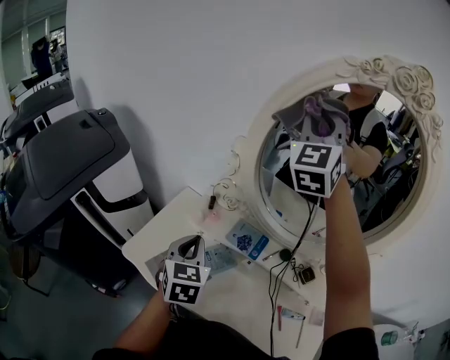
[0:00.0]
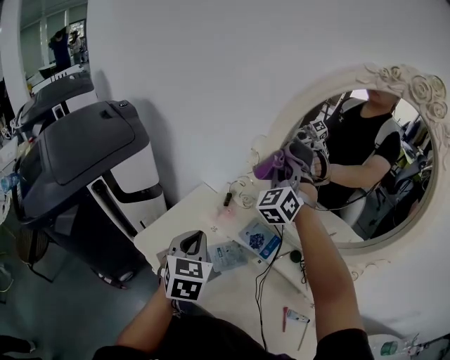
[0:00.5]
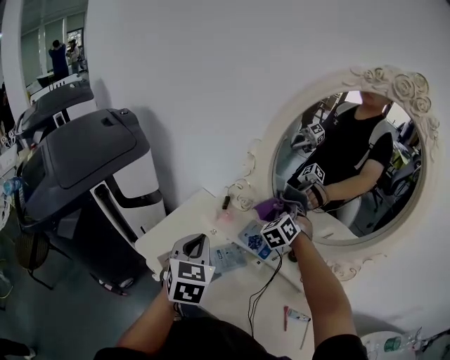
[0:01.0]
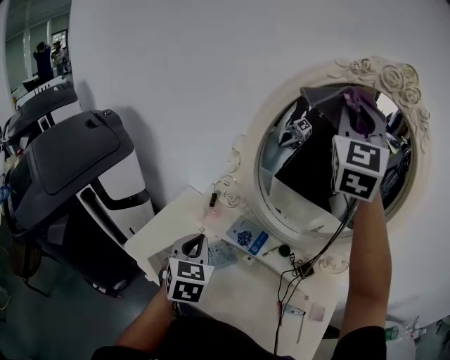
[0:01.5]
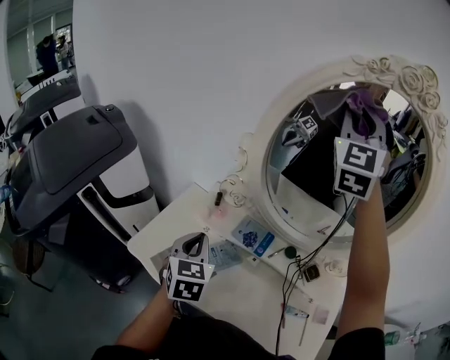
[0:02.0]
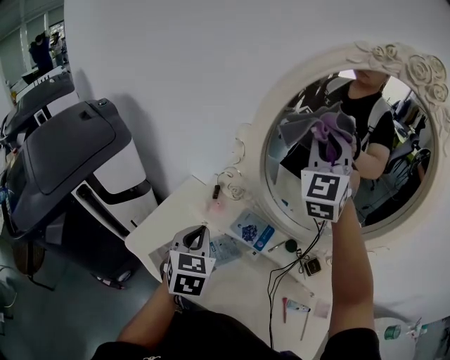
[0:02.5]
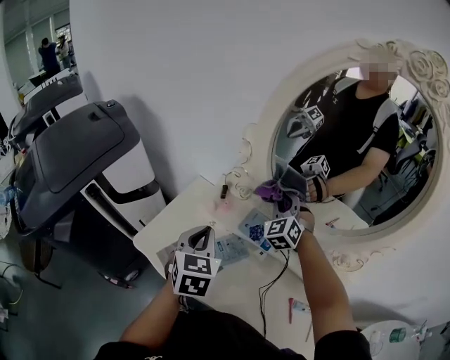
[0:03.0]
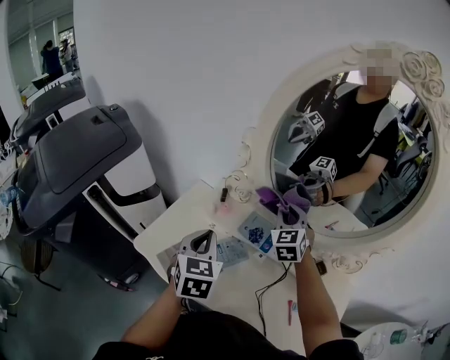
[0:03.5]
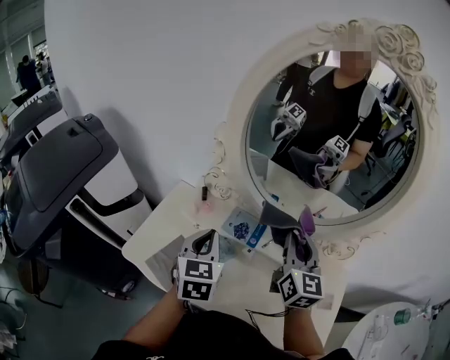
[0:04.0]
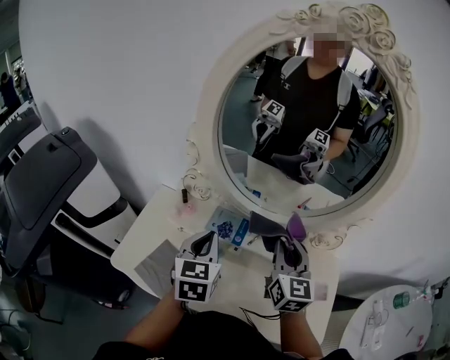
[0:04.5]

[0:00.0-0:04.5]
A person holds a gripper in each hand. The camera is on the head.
0:00.0 to 0:02.0: The right gripper goes some 5 cm to the right, and reaches some 35 cm downward, then returns.
0:02.0 to 0:04.5: The left gripper moves to the right, approximately 10 cm. The right gripper is displaced downward and backward by roughly 40 cm, and rolls clockwise, seen from behind, by approximately 40 degrees.

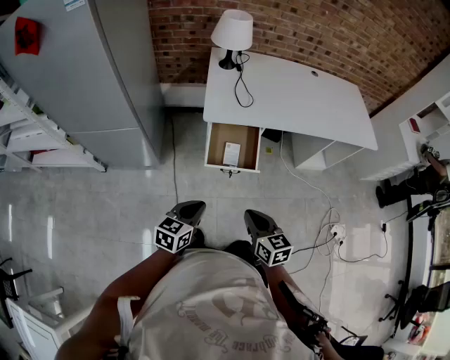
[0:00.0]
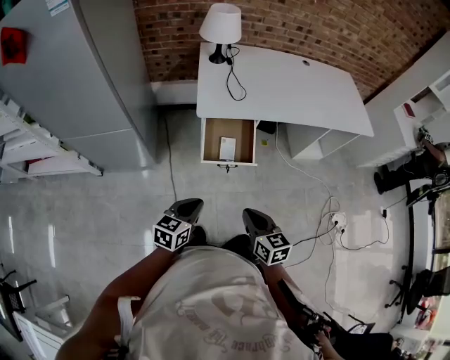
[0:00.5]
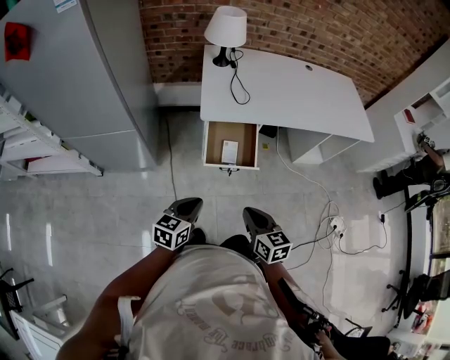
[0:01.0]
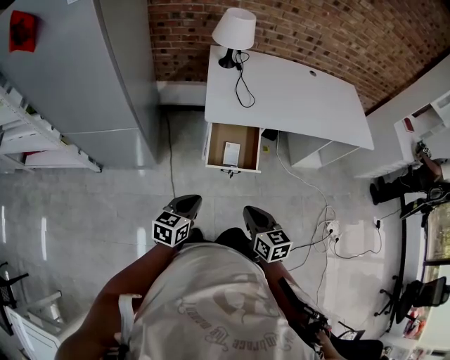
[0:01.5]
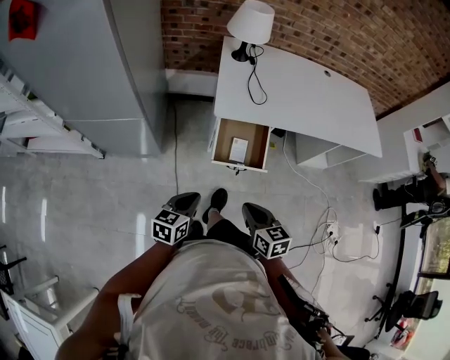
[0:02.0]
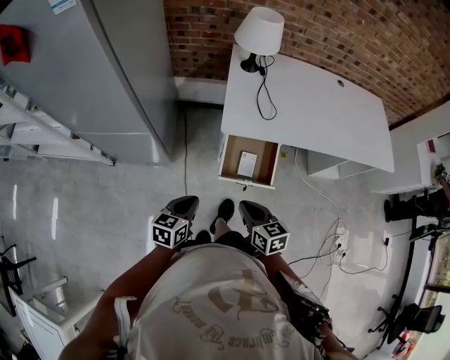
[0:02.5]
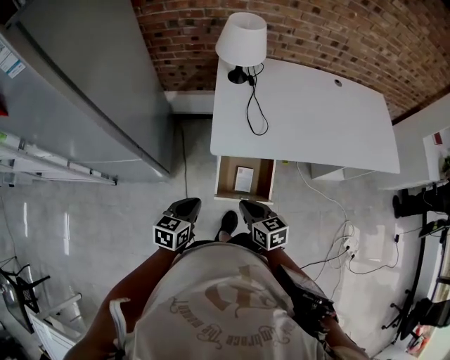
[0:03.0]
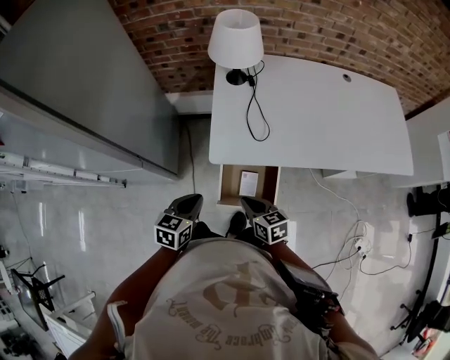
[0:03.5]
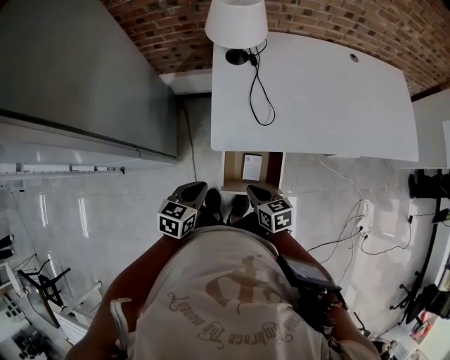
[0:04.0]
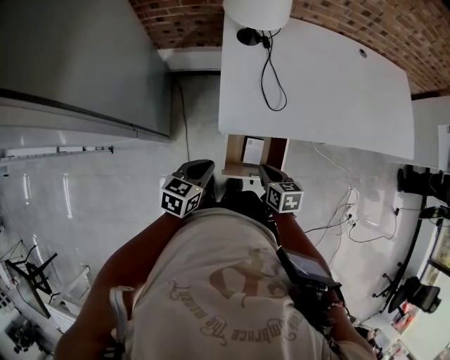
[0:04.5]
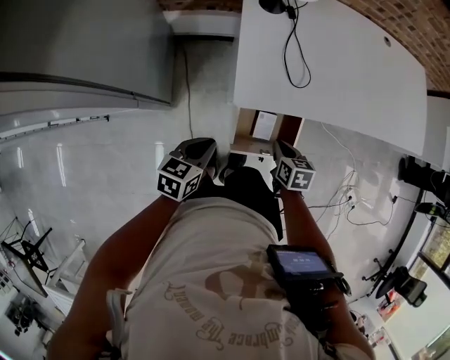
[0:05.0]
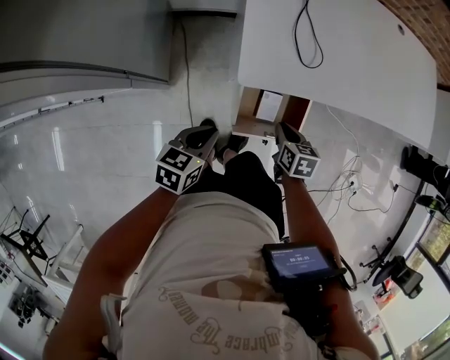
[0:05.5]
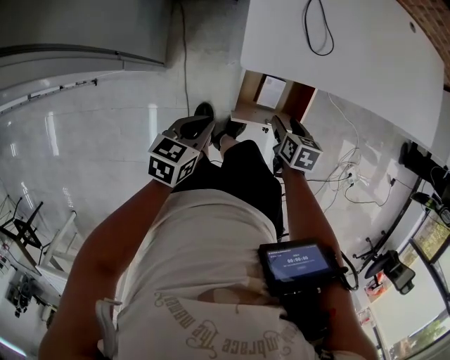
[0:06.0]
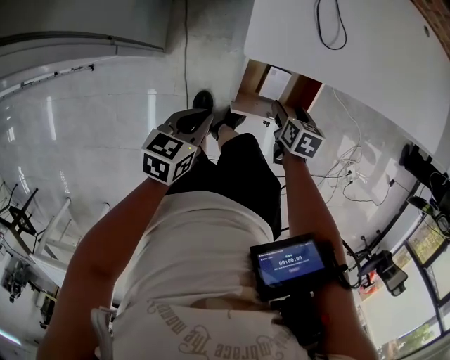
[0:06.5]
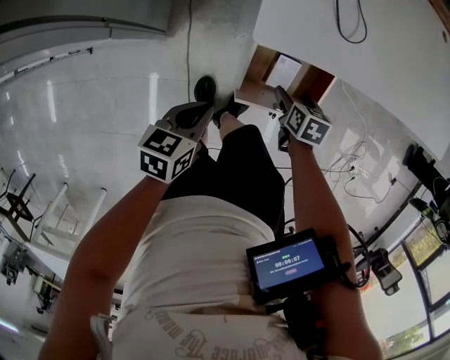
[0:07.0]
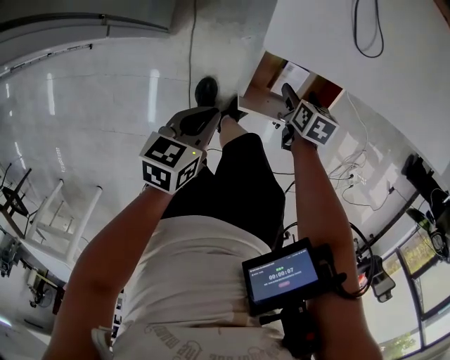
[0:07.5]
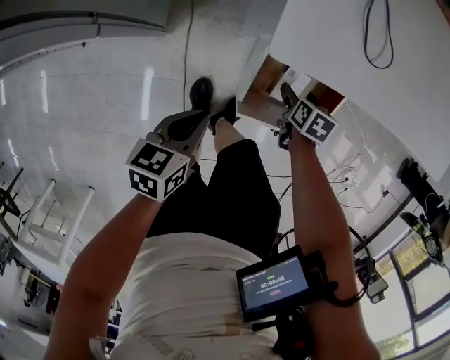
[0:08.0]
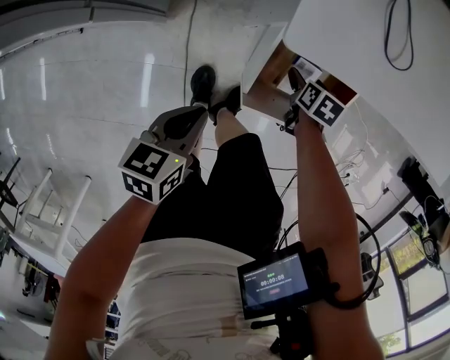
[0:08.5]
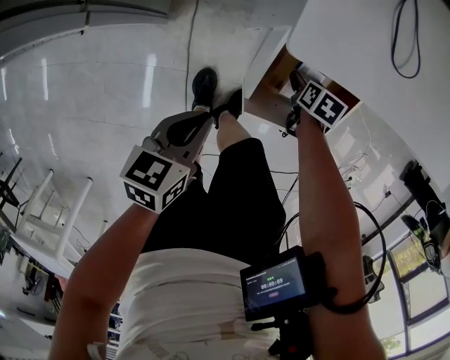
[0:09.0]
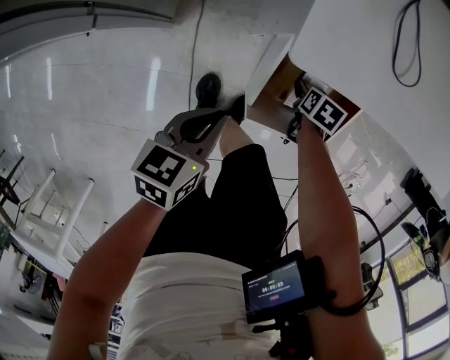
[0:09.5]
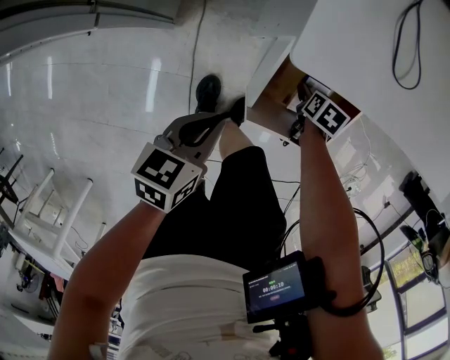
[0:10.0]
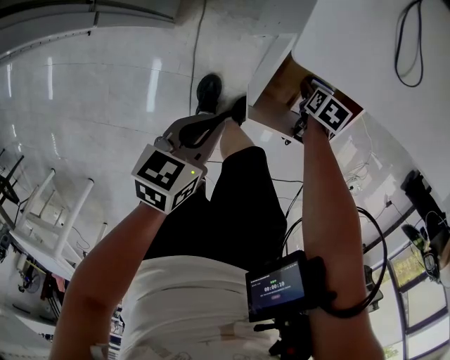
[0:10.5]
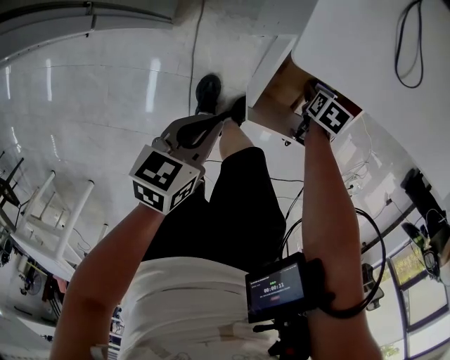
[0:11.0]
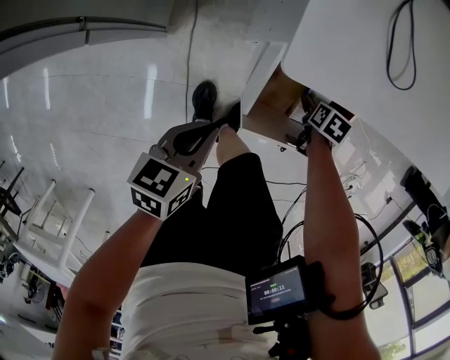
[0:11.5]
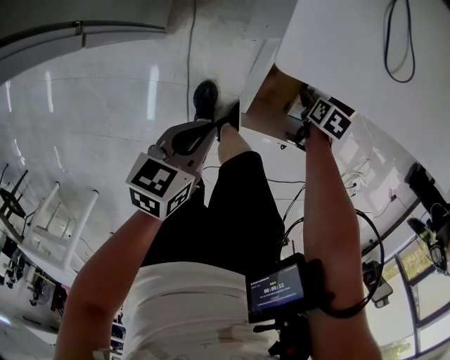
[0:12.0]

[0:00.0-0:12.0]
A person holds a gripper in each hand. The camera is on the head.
0:00.0 to 0:02.0: The left gripper heads to the left, covering about 5 cm; the right gripper goes approximately 5 cm forward and to the left.
0:02.0 to 0:04.0: Both grippers travel together forward, about 25 cm.
0:04.0 to 0:06.0: The right gripper is displaced downward by roughly 15 cm, rotates some 30 degrees, and opens up; the left gripper travels downward and to the left by approximately 10 cm.
0:06.0 to 0:08.0: The left gripper shifts roughly 10 cm downward; the right gripper goes roughly 15 cm downward and forward.
0:08.0 to 0:10.0: The right gripper goes roughly 5 cm downward.
0:10.0 to 0:12.0: The grippers make only small movements.

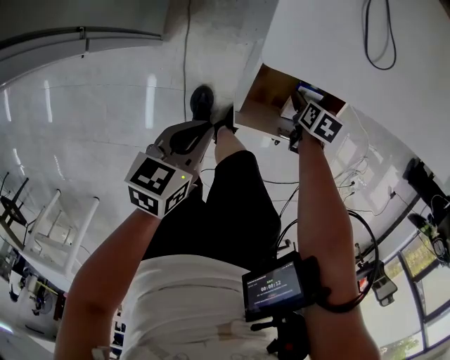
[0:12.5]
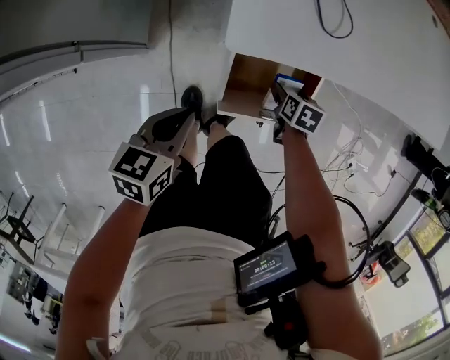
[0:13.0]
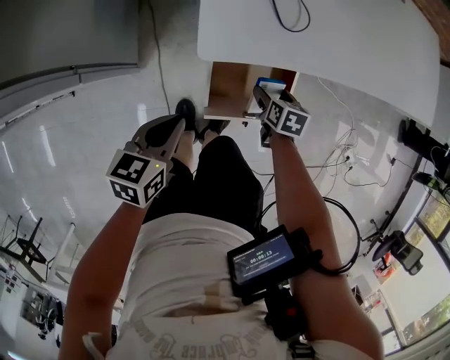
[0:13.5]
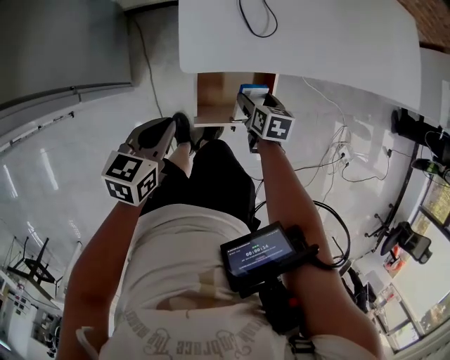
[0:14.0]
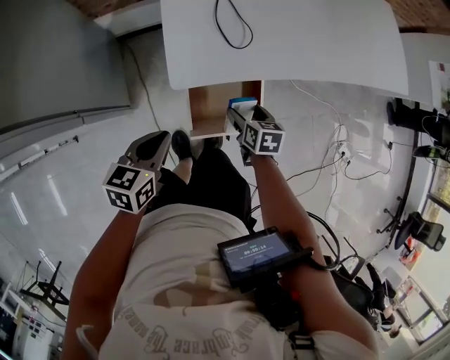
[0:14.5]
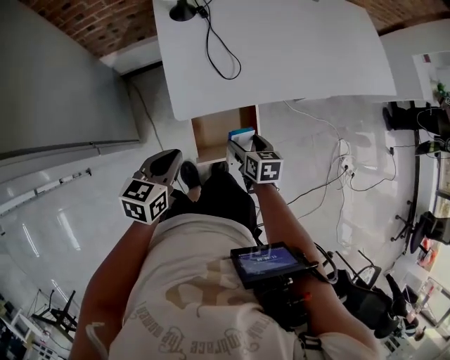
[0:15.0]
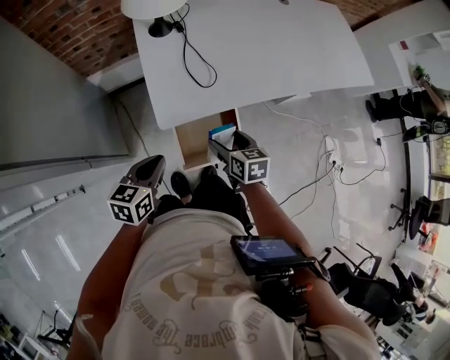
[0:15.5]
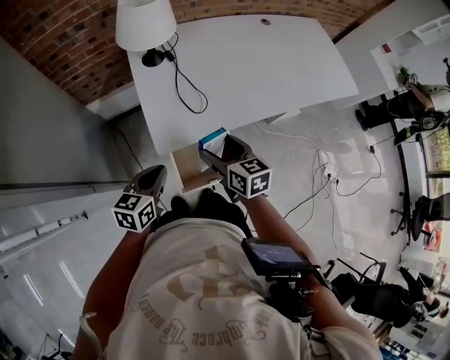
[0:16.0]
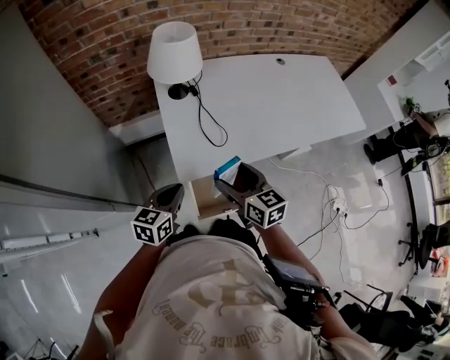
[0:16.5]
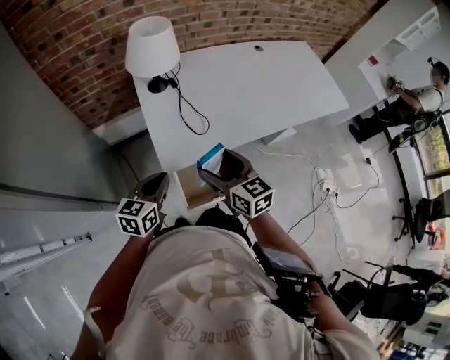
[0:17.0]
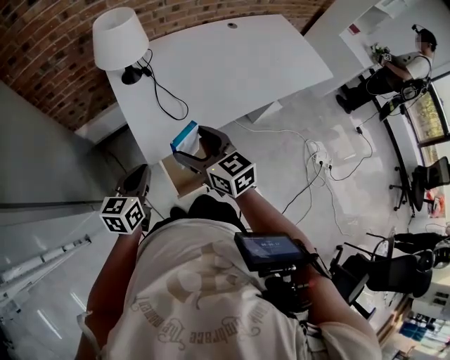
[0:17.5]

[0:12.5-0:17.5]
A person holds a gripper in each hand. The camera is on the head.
0:12.5 to 0:15.0: The two grippers go some 20 cm upward. The left gripper changes its angle by approximately 20 degrees. Meanwhile the right gripper turns by roughly 20 degrees.
0:15.0 to 0:17.5: The right gripper travels upward by approximately 25 cm, and tilts its fingers roughly 30 degrees upward. The left gripper shifts roughly 10 cm upward.

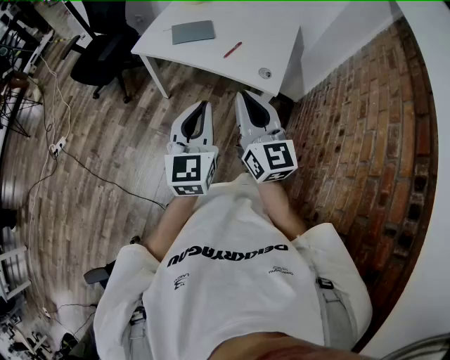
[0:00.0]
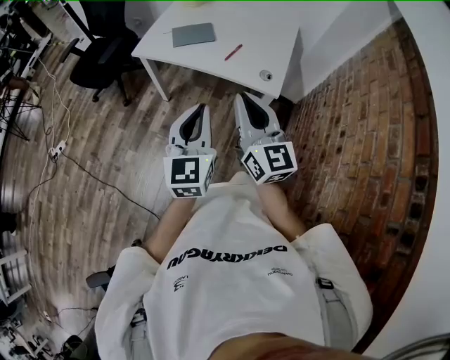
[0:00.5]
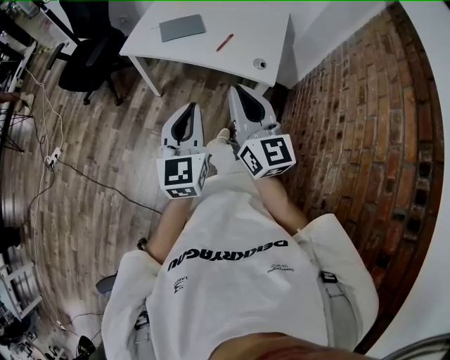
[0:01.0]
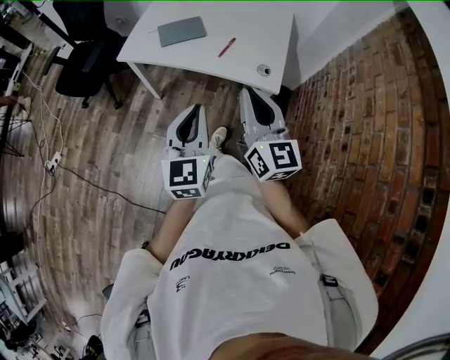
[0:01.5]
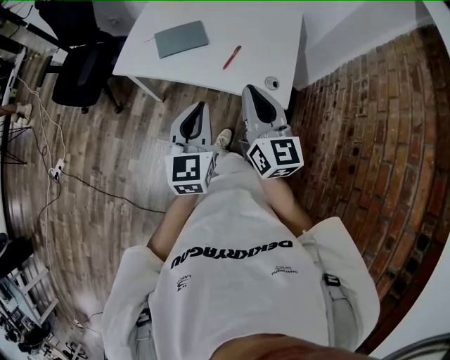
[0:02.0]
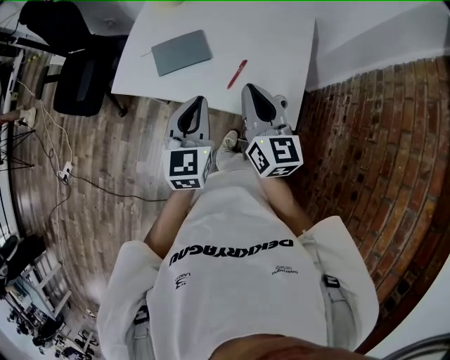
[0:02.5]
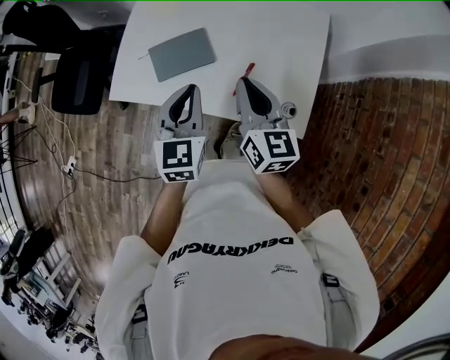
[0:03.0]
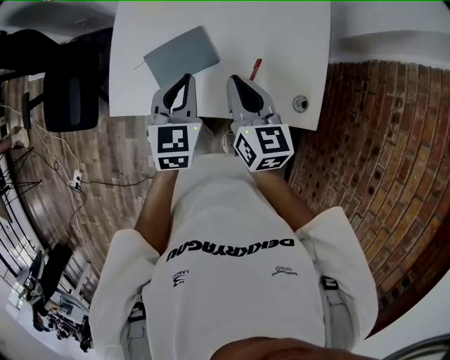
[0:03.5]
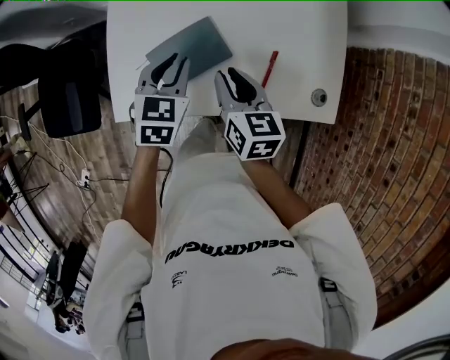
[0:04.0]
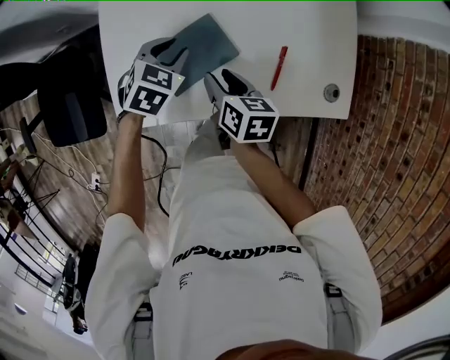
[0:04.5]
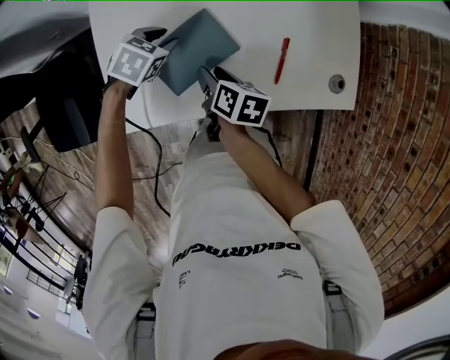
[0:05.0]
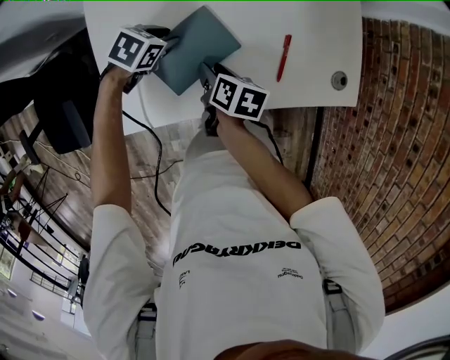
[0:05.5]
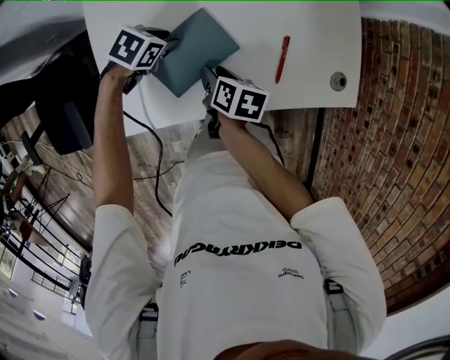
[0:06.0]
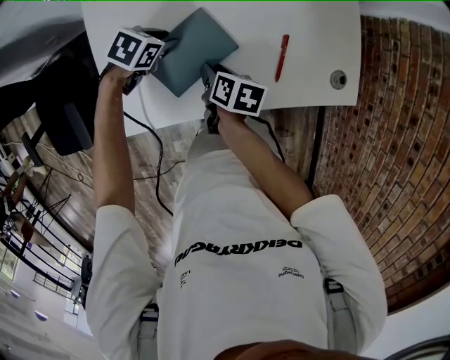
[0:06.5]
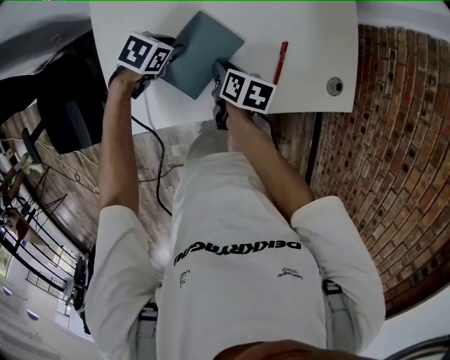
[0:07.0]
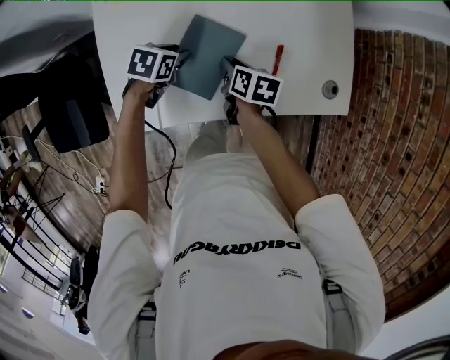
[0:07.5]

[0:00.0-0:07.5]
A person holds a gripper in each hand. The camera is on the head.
0:00.0 to 0:02.0: Both grippers travel together forward, about 20 cm.
0:02.0 to 0:04.0: The right gripper is displaced forward, downward and to the left by roughly 40 cm, and angles its fingers downward, by approximately 30 degrees, while the left gripper moves forward and downward, approximately 50 cm, and tilts its fingers some 30 degrees downward.
0:04.0 to 0:05.5: Both grippers travel together downward, about 15 cm. The right gripper changes its angle by some 40 degrees; the left gripper changes its angle by roughly 40 degrees.
0:05.5 to 0:07.5: The right gripper is displaced forward by about 5 cm.
